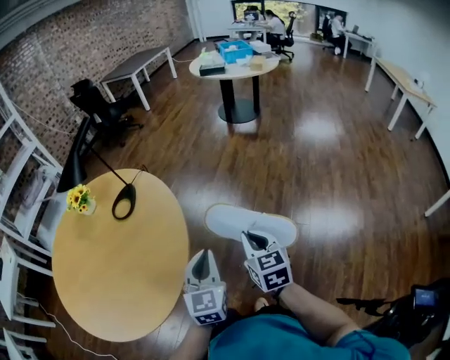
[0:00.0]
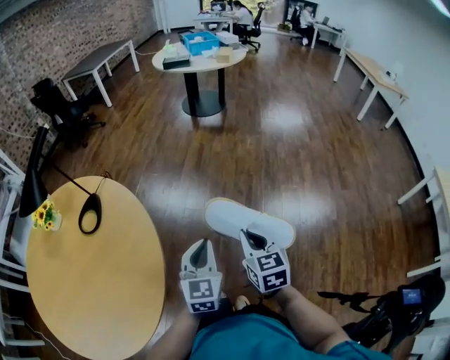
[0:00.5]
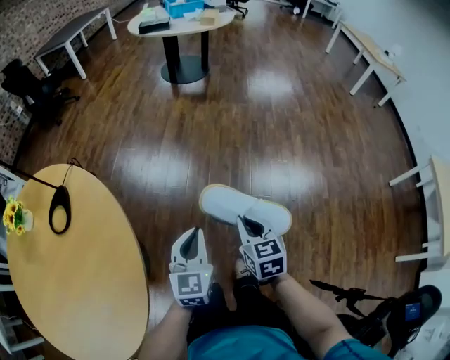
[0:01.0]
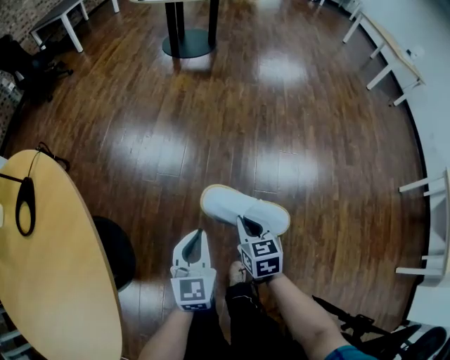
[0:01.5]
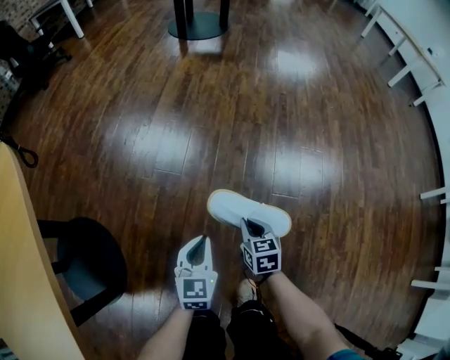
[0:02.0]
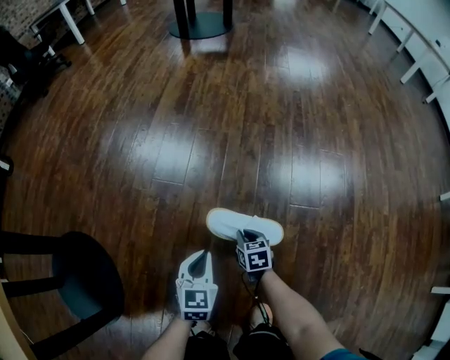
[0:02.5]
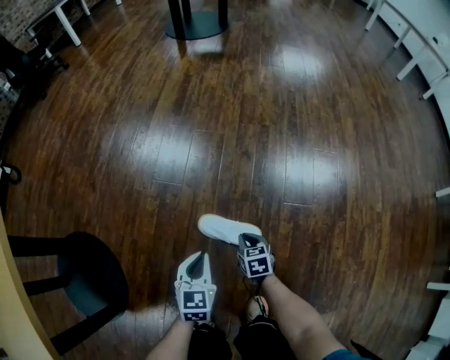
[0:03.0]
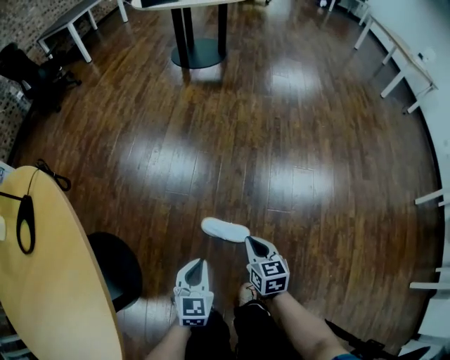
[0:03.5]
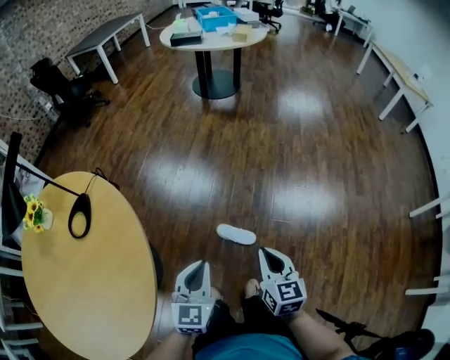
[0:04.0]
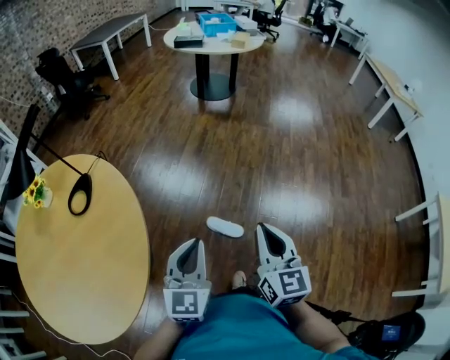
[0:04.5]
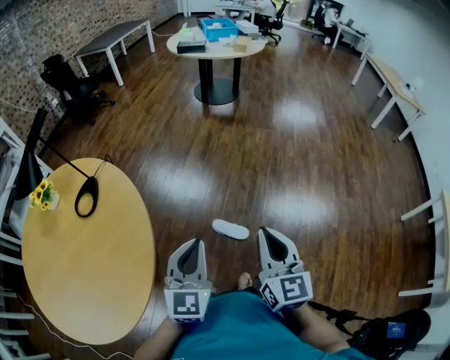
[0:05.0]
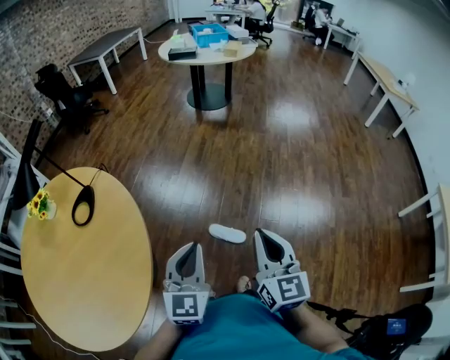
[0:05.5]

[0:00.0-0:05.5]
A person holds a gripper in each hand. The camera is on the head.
0:00.0 to 0:02.0: Both grippers travel together downward and forward, roughly 70 cm. The left gripper changes its angle by some 20 degrees. The right gripper rotates some 30 degrees.
0:02.0 to 0:03.5: The grippers both shift upward by about 20 cm.
0:03.5 to 0:05.5: Both grippers move upward, some 50 cm. The left gripper rotates roughly 20 degrees. Meanwhile the right gripper angles its fingers upward, by approximately 30 degrees.

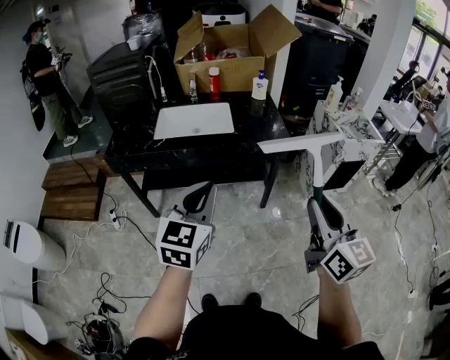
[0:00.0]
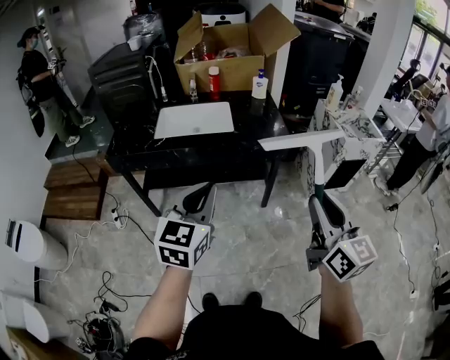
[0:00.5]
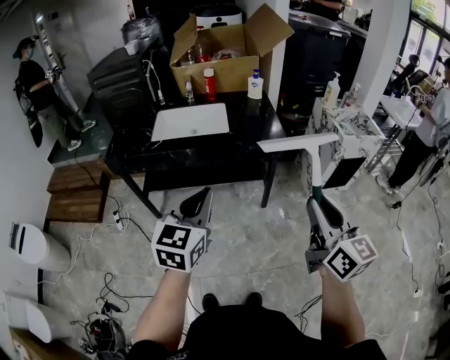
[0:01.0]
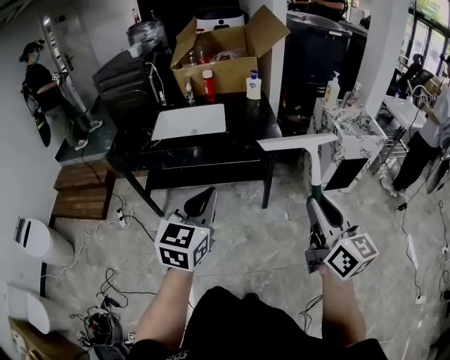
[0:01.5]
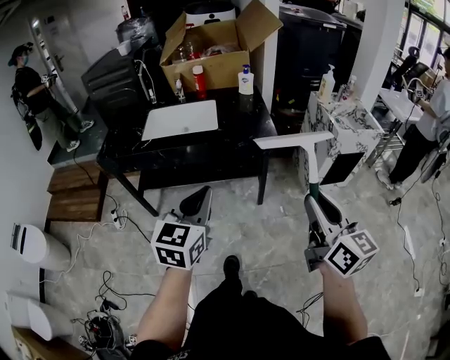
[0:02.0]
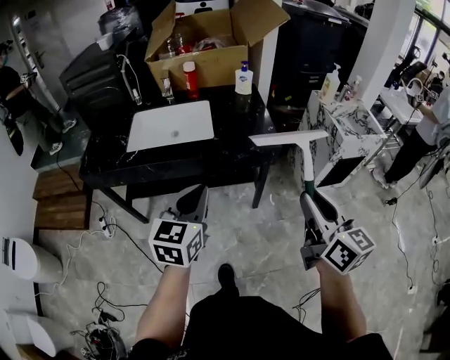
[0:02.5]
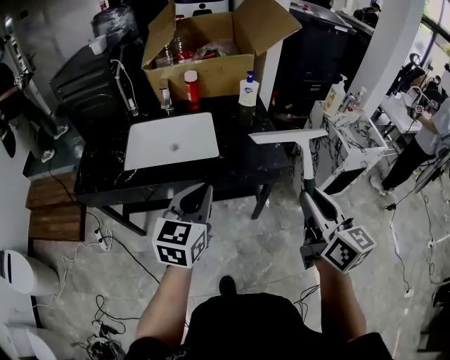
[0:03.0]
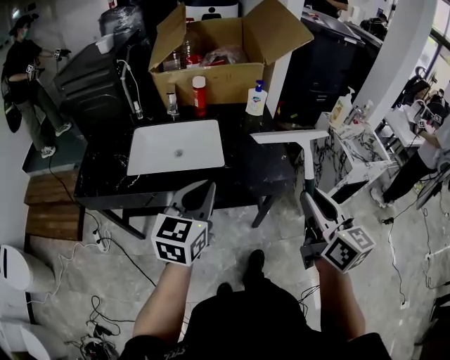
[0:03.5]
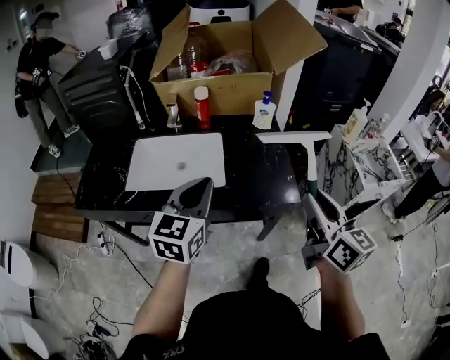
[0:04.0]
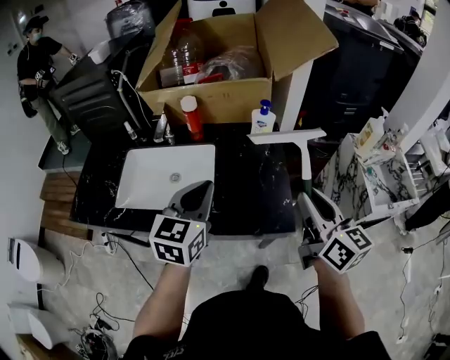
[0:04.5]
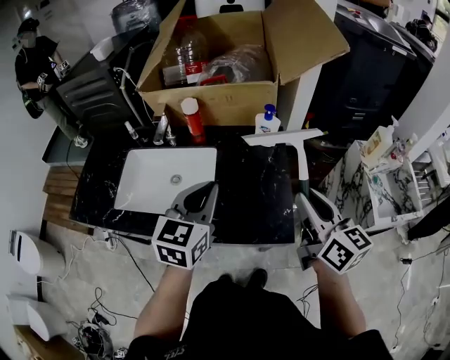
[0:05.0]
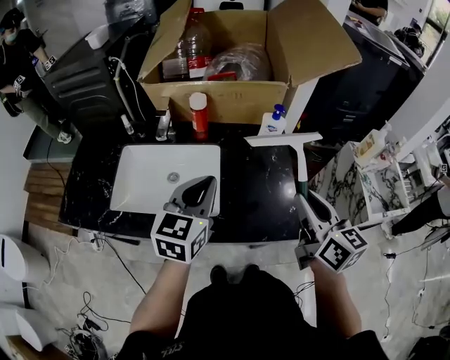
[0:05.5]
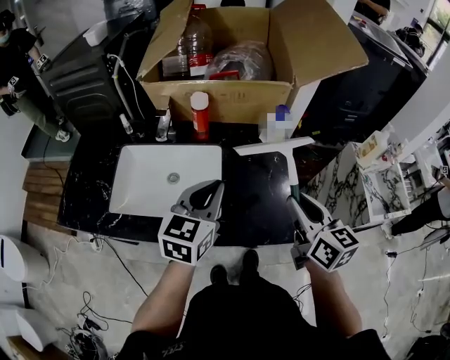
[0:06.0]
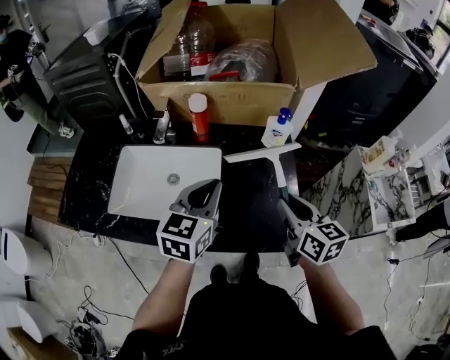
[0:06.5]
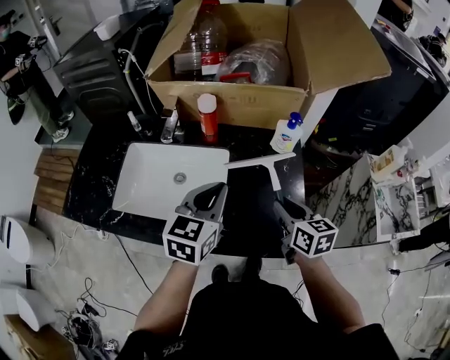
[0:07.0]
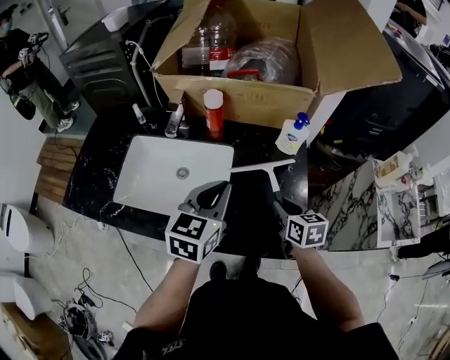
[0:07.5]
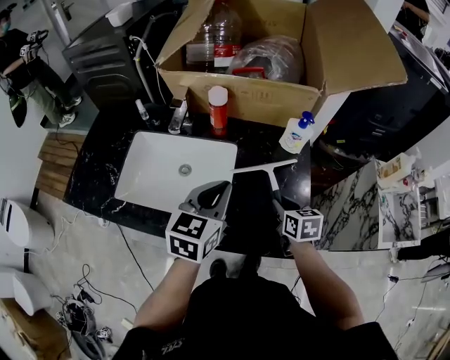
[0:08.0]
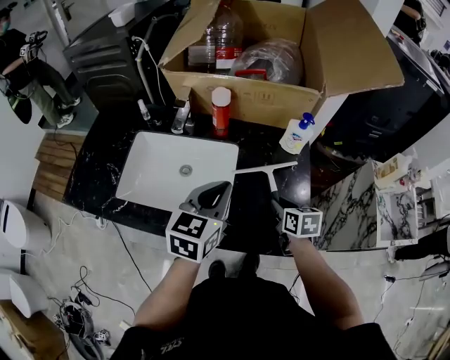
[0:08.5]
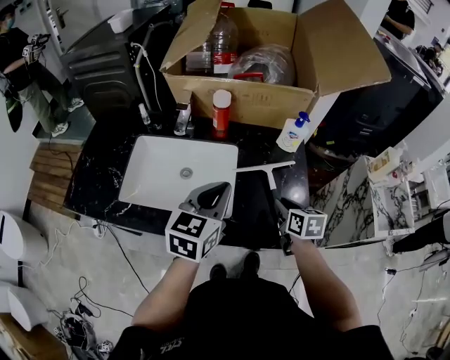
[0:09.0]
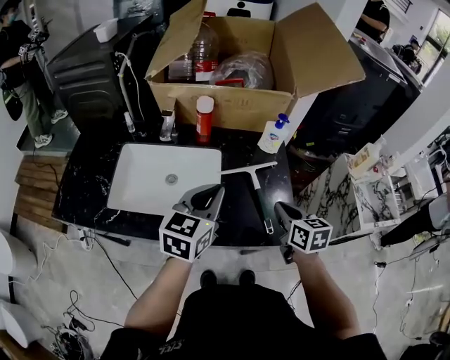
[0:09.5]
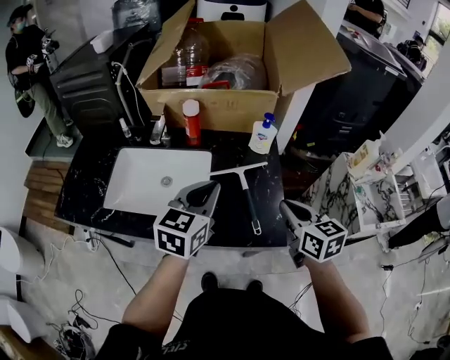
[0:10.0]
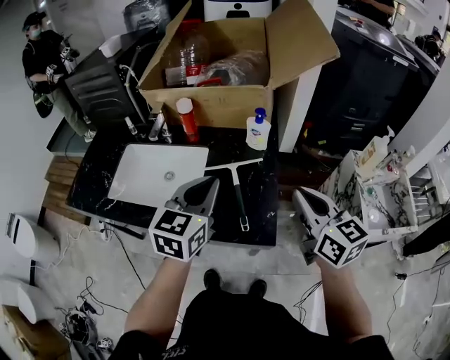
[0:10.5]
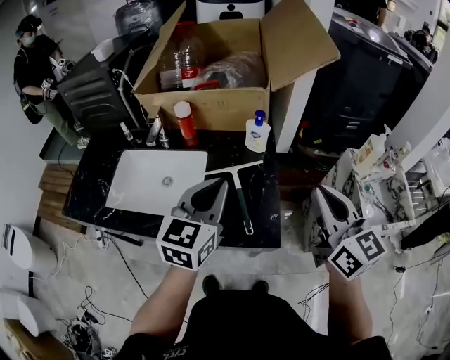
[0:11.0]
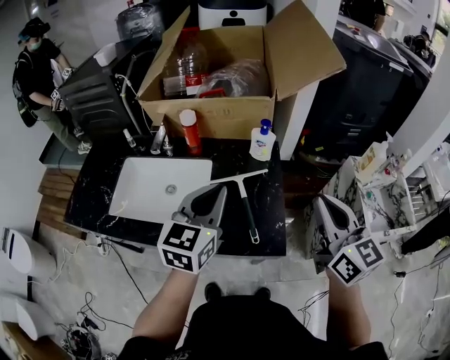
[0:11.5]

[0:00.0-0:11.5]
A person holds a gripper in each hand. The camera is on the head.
0:00.0 to 0:02.0: Both grippers move to the right, approximately 10 cm.
0:02.0 to 0:04.0: Both grippers move forward, about 35 cm.
0:04.0 to 0:06.0: The two grippers go about 15 cm forward.
0:06.0 to 0:07.5: The right gripper heads downward and forward, covering some 20 cm, and changes its angle by some 20 degrees.
0:07.5 to 0:09.5: The left gripper moves approximately 5 cm. Meanwhile the right gripper travels upward and backward by about 10 cm, and closes.
0:09.5 to 0:11.5: The left gripper heads to the right and upward, covering roughly 10 cm; the right gripper is displaced upward and to the right by approximately 25 cm, and rotates approximately 30 degrees.

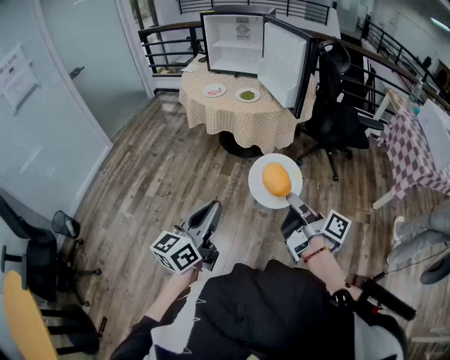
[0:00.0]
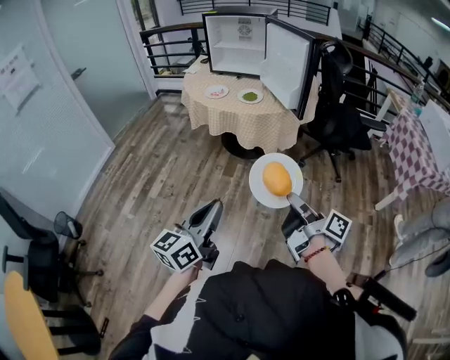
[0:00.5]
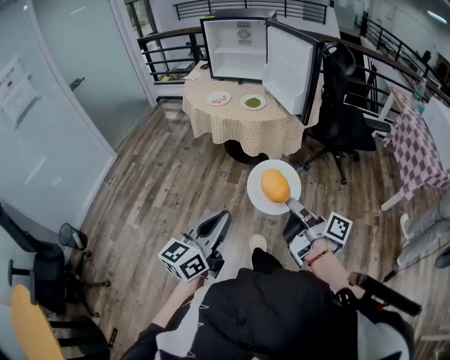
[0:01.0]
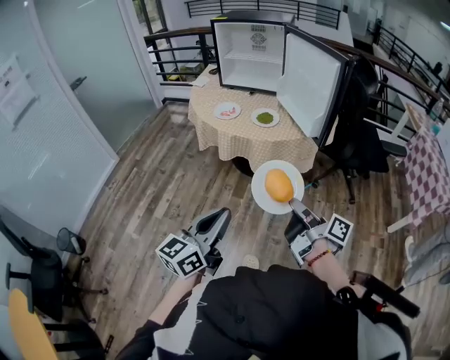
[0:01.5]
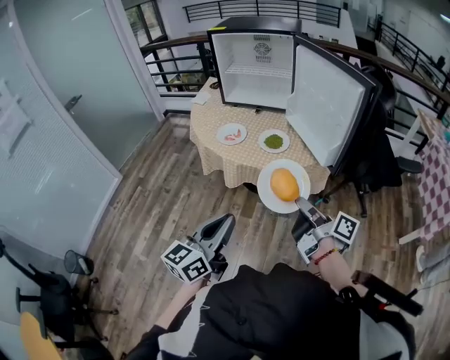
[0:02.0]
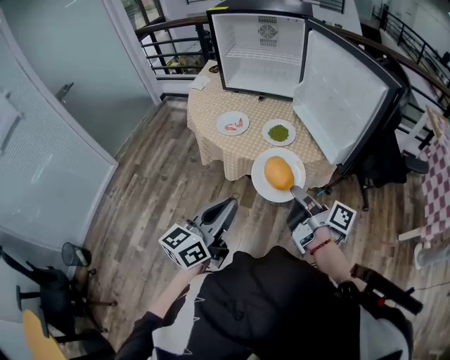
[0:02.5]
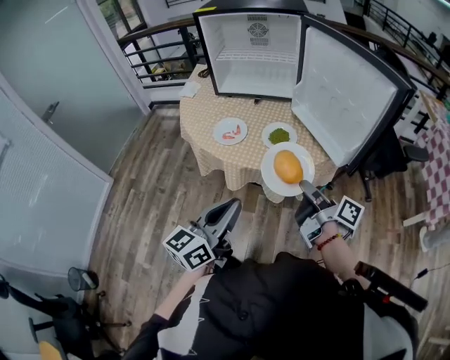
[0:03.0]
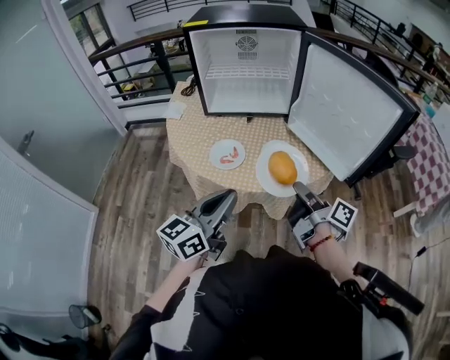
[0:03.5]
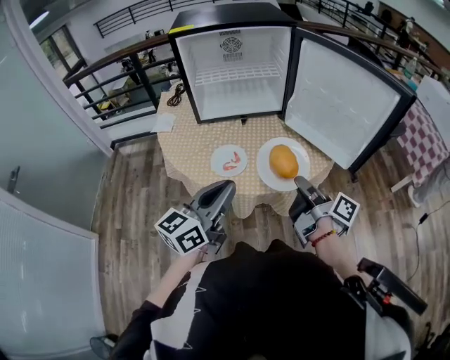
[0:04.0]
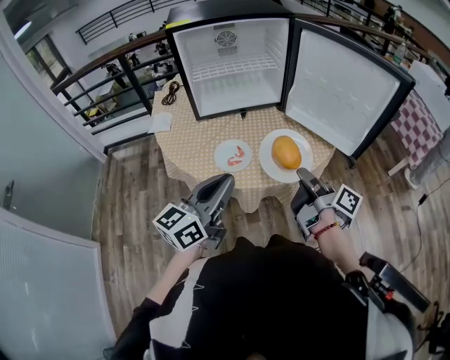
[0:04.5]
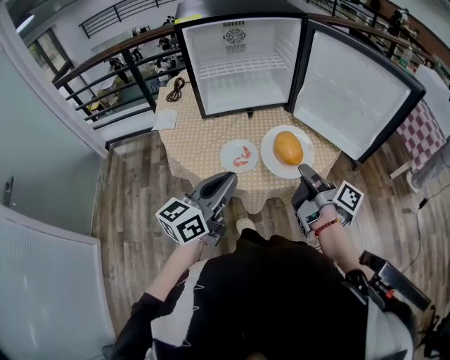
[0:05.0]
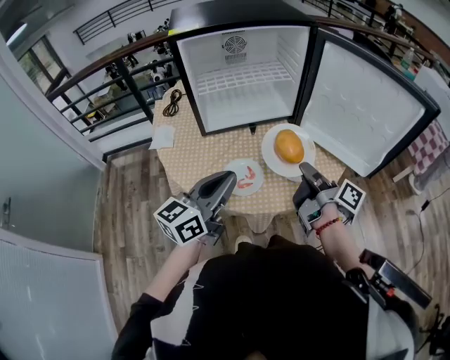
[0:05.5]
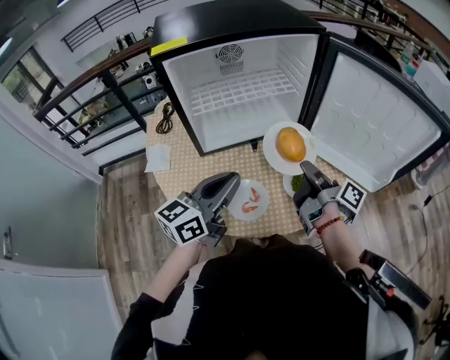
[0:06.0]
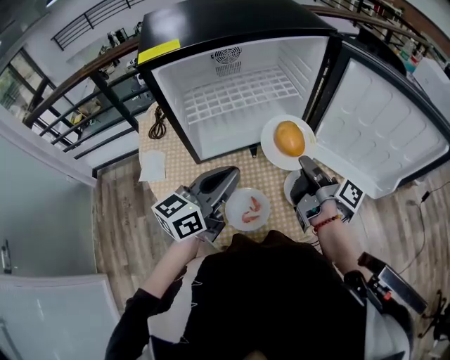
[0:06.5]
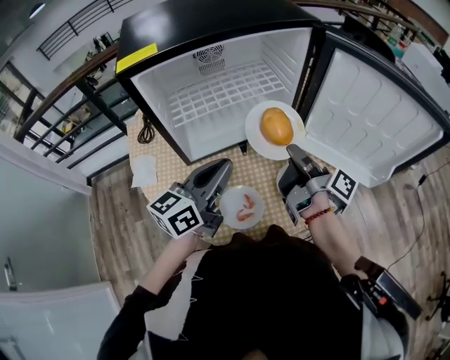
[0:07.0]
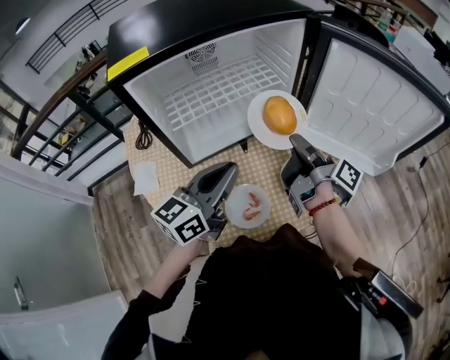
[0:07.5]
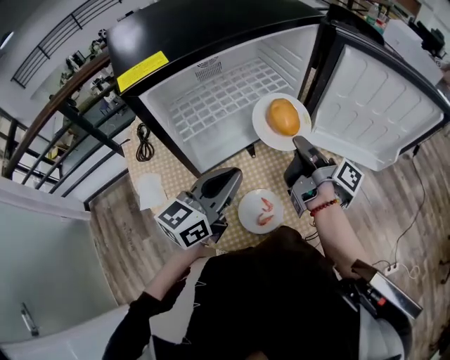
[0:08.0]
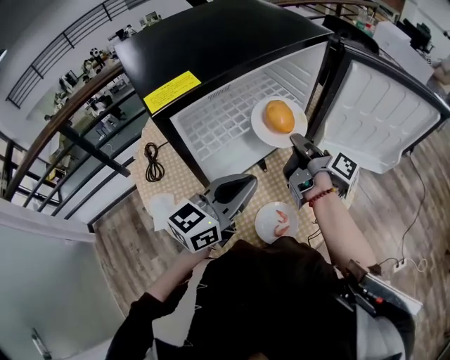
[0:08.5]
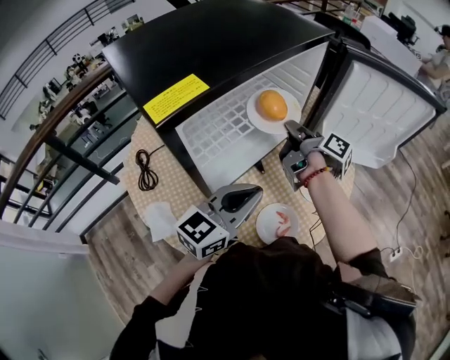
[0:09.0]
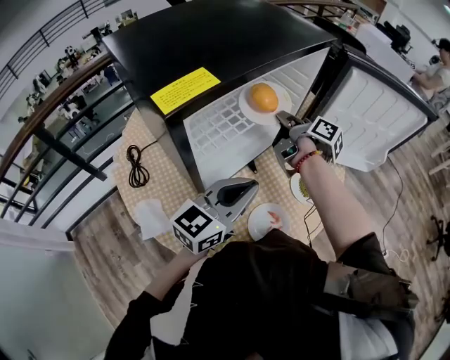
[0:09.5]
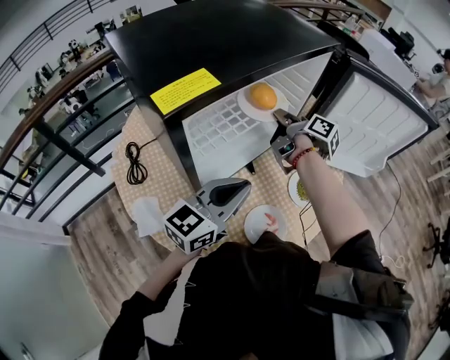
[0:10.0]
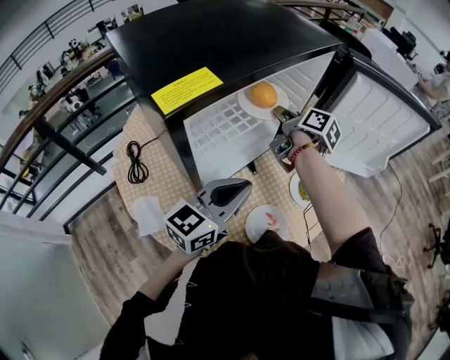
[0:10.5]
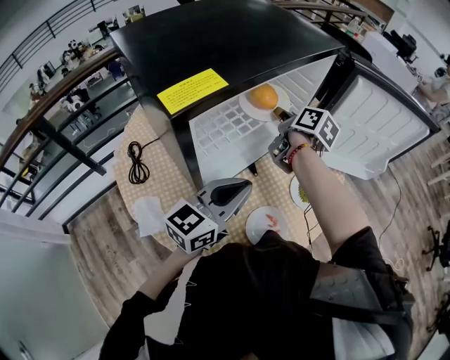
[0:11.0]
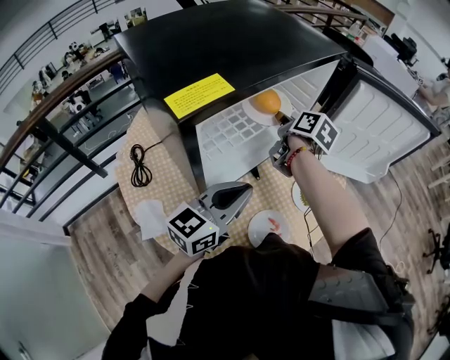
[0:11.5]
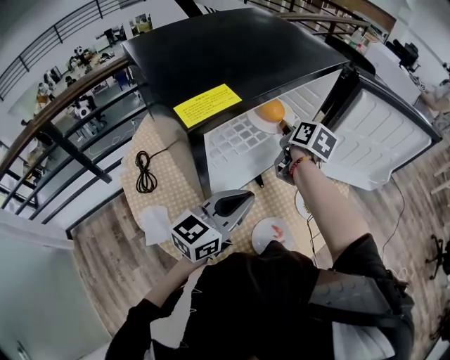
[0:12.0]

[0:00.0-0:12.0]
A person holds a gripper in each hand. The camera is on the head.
0:00.0 to 0:02.0: Both grippers move forward, approximately 35 cm.
0:02.0 to 0:04.0: The right gripper ends up some 25 cm from where it was, and swivels some 30 degrees; the left gripper ends up roughly 35 cm from where it was, and swivels about 30 degrees.
0:04.0 to 0:06.0: The grippers both shift forward and to the left by roughly 20 cm.
0:06.0 to 0:08.0: The left gripper goes approximately 10 cm forward. Meanwhile the right gripper heads forward and to the left, covering some 10 cm.
0:08.0 to 0:10.0: The right gripper shifts roughly 15 cm forward and to the left, and swivels some 20 degrees.
0:10.0 to 0:12.0: The right gripper changes its angle by roughly 40 degrees, and opens its fingers.
